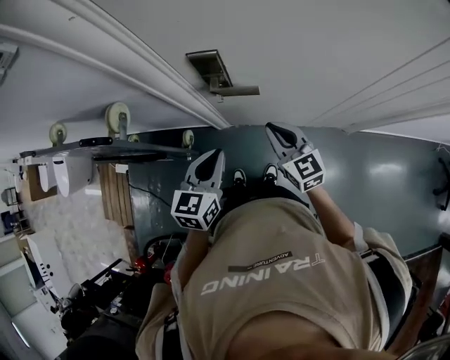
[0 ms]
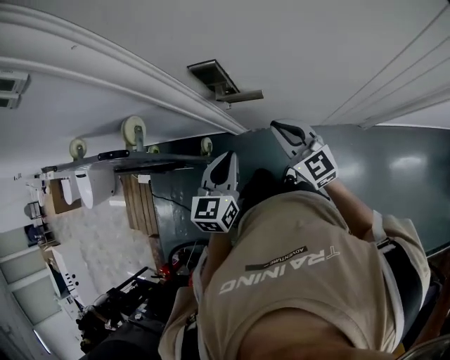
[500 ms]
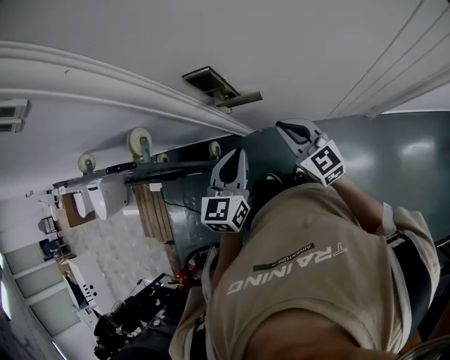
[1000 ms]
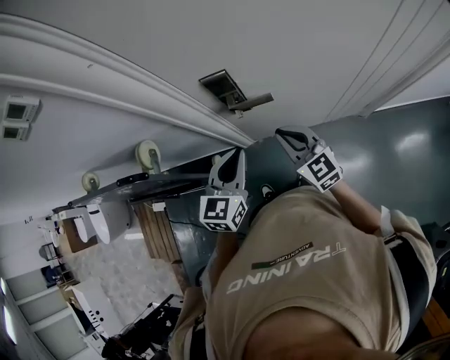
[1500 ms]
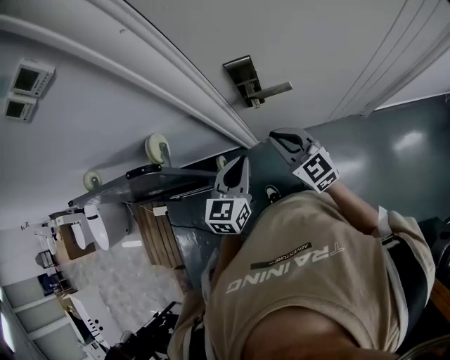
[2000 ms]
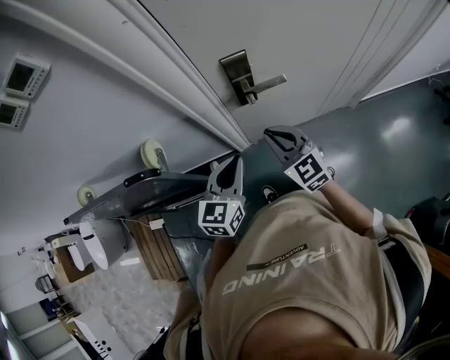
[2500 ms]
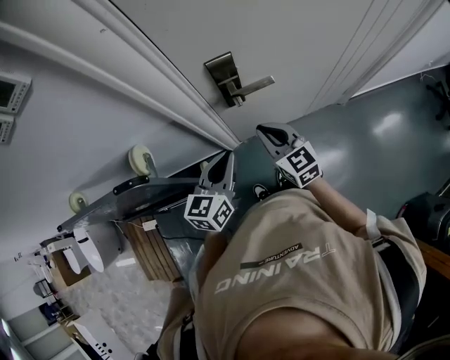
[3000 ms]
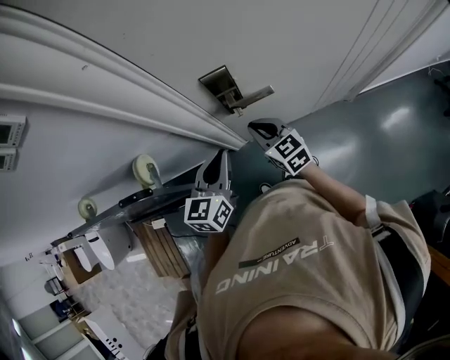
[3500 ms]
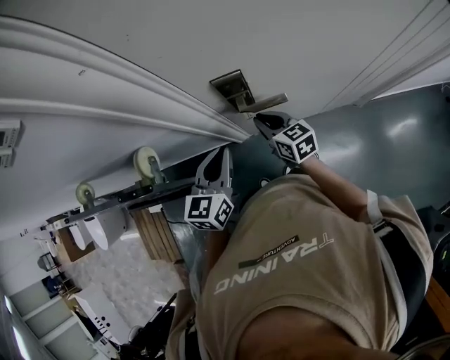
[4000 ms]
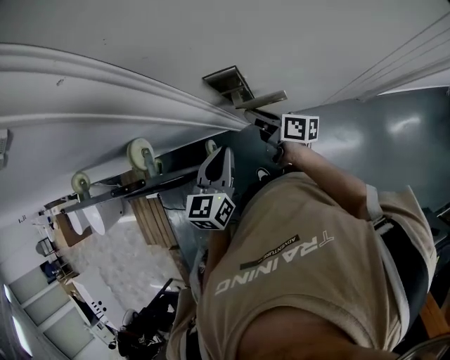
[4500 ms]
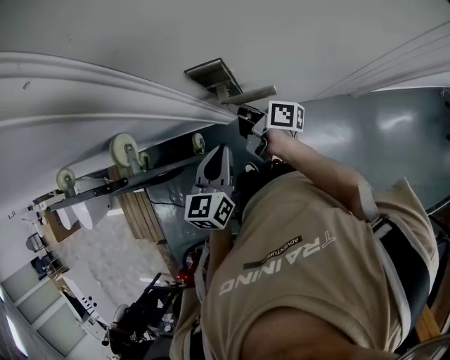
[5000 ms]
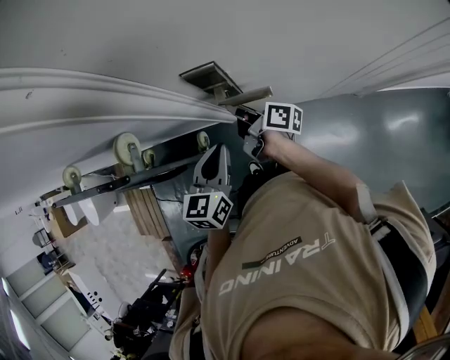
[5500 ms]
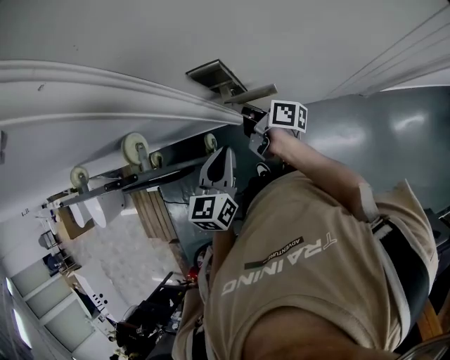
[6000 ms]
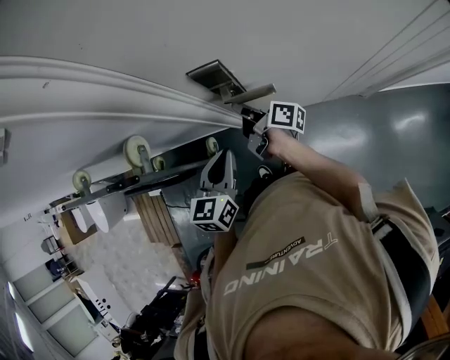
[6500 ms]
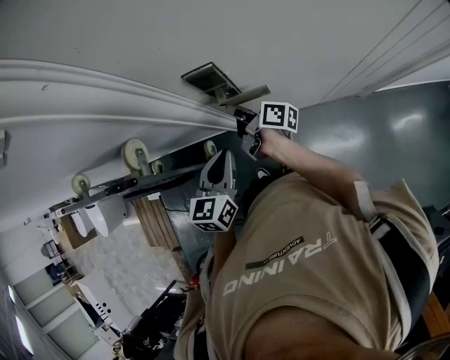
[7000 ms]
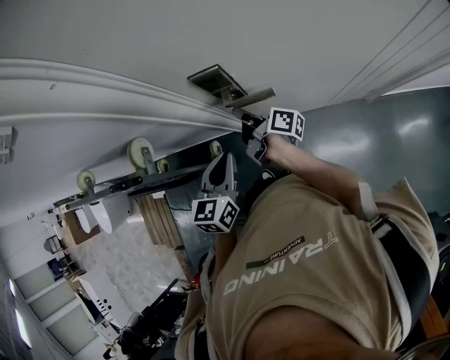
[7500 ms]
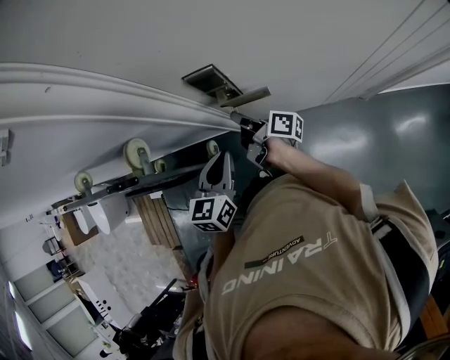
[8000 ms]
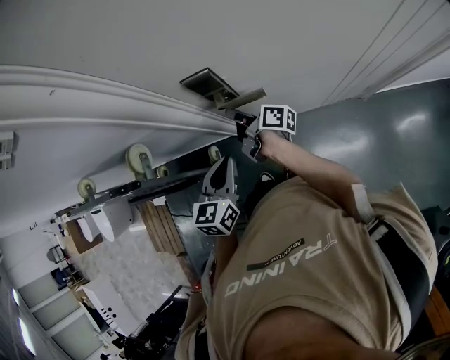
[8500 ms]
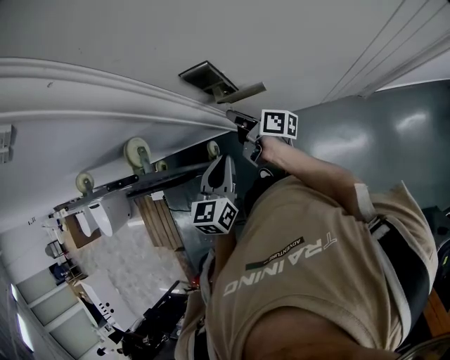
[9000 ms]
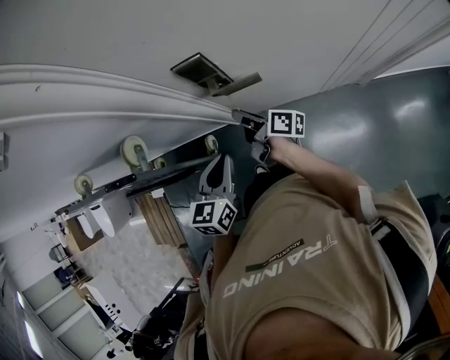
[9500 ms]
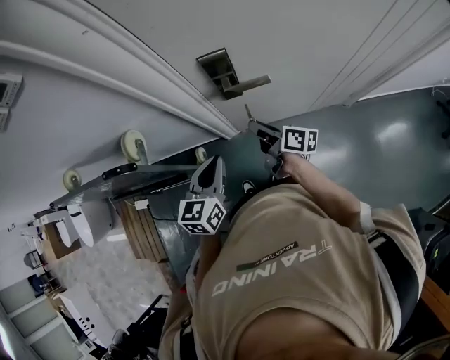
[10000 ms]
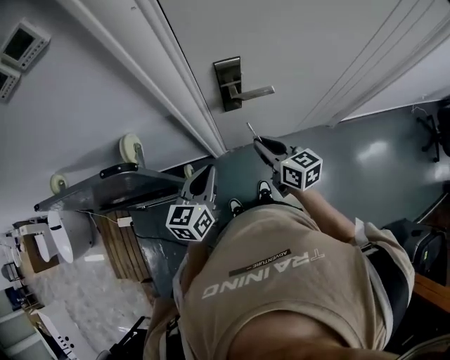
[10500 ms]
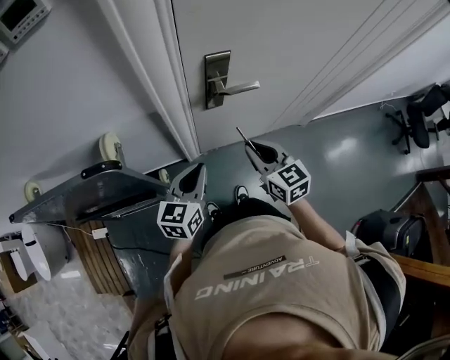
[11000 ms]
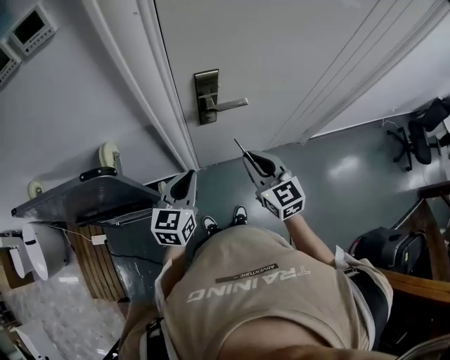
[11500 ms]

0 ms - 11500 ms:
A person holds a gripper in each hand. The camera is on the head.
0 ms - 2000 ms: Both grippers move to the left, approximately 10 cm.
2000 ms - 4000 ms: The left gripper is displaced forward by roughly 10 cm; the right gripper shifts about 15 cm forward and downward, and changes its angle by approximately 30 degrees.
4000 ms - 6000 ms: The left gripper moves about 5 cm, while the right gripper rotates around the line of its fingers by about 60 degrees, clockwise from behind.
6000 ms - 9500 ms: There are only small adjustments of the grippers.
9500 ms - 11500 ms: The right gripper travels backward and upward by about 20 cm, and rotates around the line of its fingers by approximately 80 degrees, counterclockwise from behind. Meanwhile the left gripper shifts some 10 cm to the left and upward.

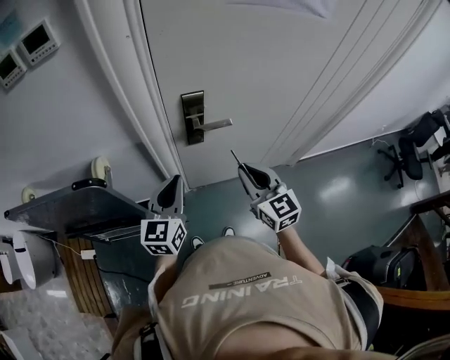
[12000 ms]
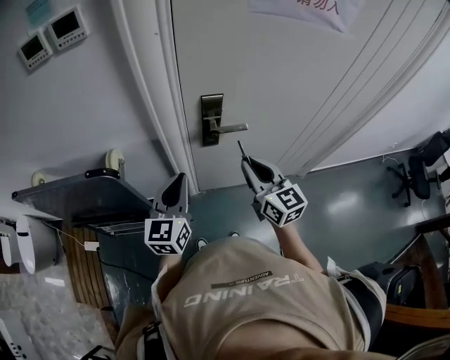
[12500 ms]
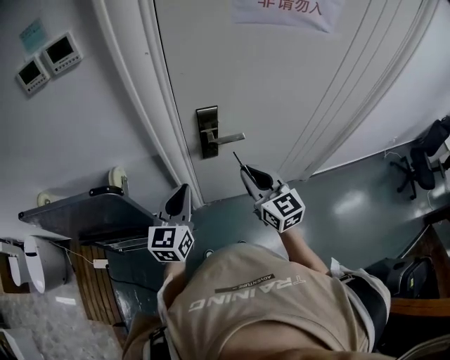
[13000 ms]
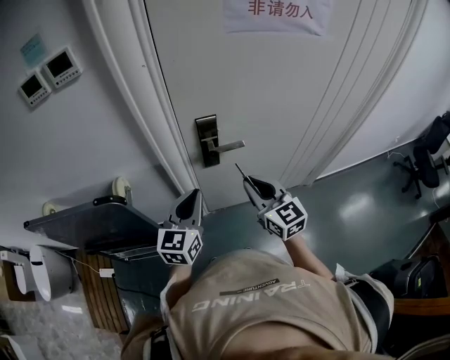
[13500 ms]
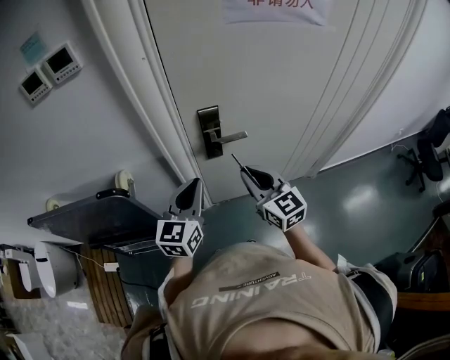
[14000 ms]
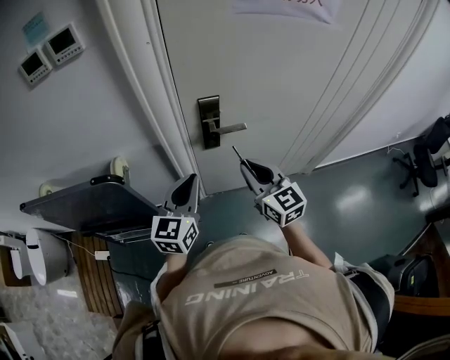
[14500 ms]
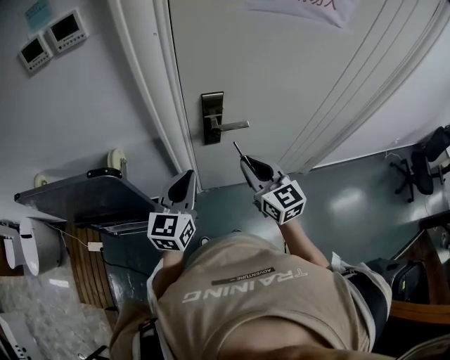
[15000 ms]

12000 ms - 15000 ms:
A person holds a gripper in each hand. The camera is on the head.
12000 ms - 15000 ms: The grippers move only a little.

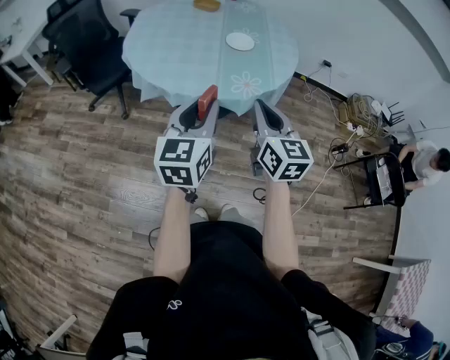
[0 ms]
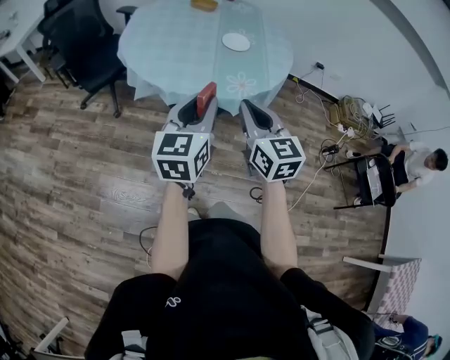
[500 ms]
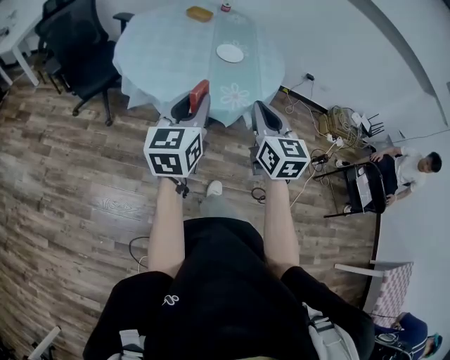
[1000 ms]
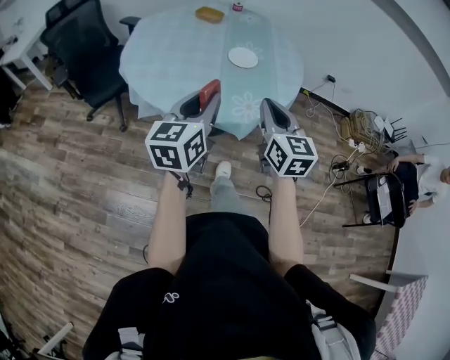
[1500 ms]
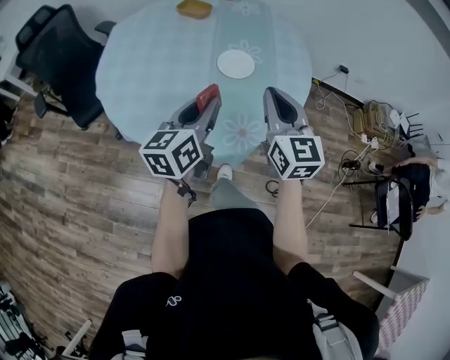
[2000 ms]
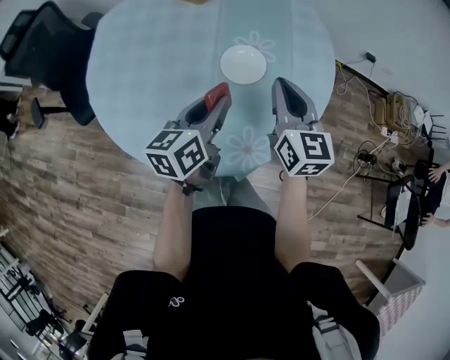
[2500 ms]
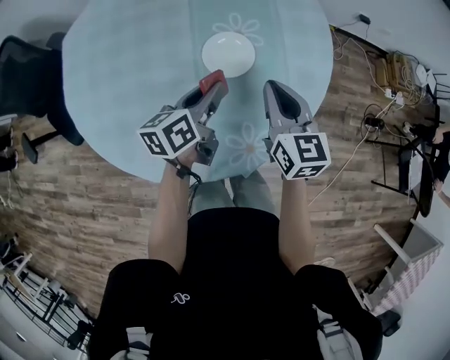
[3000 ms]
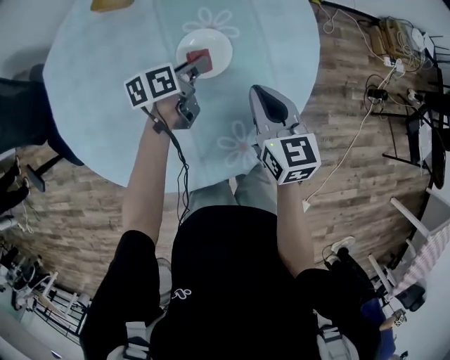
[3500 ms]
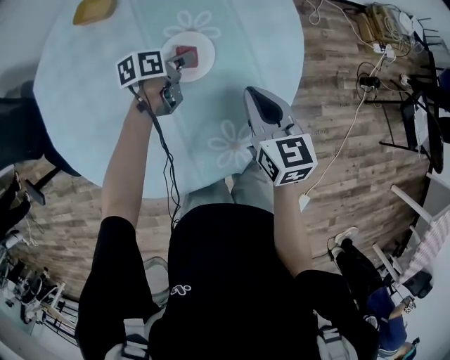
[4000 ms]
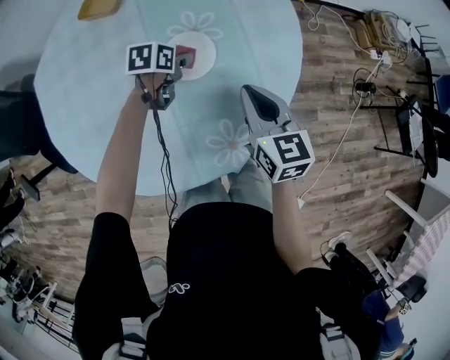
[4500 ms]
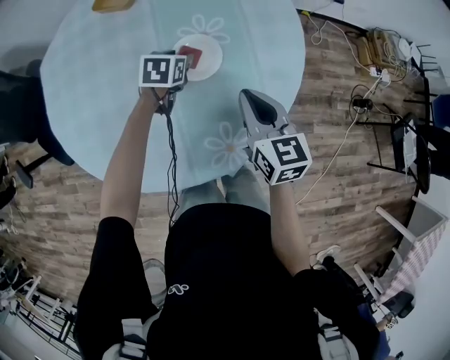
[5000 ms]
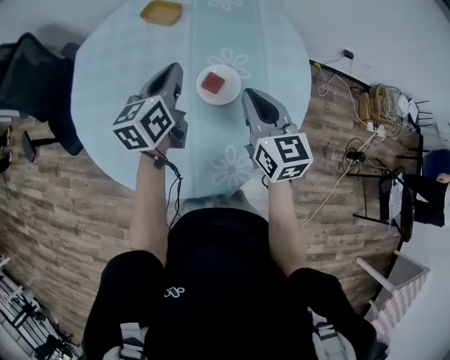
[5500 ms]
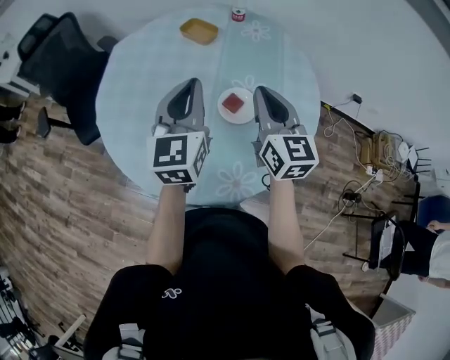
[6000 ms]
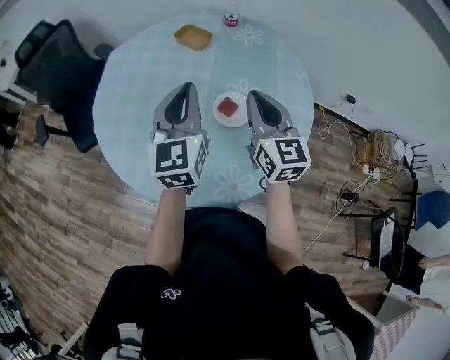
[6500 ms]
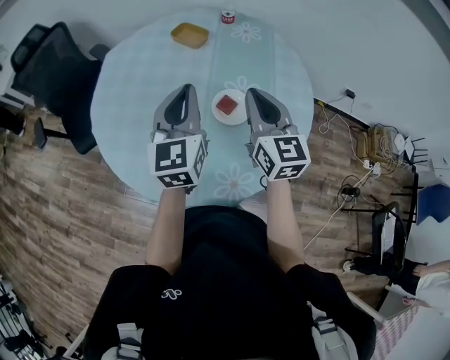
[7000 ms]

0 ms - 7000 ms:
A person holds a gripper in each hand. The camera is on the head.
0 ms - 2000 ms: The two grippers go some 35 cm forward. The left gripper swivels roughly 20 degrees.
2000 ms - 3500 ms: The right gripper shifts some 25 cm downward and forward, and rotates roughly 30 degrees, while the left gripper heads forward and downward, covering about 40 cm, and swivels roughly 40 degrees.
3500 ms - 5000 ms: The left gripper rotates some 40 degrees, and opens up.
5000 ms - 7000 ms: The right gripper goes approximately 20 cm upward and to the left, and rotates about 30 degrees. The left gripper heads upward, covering about 30 cm, tips its fingers upward by roughly 50 degrees, and closes its fingers.

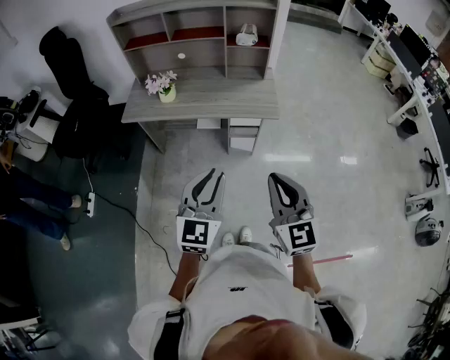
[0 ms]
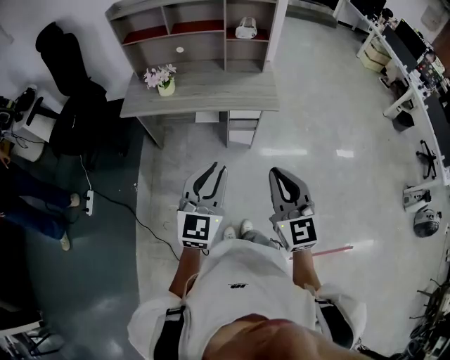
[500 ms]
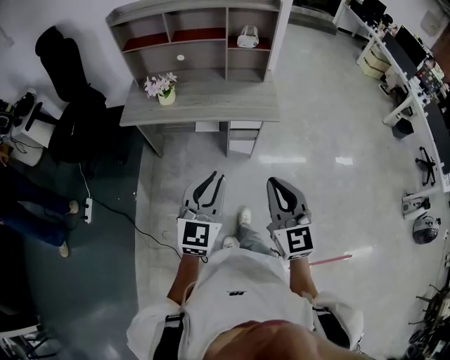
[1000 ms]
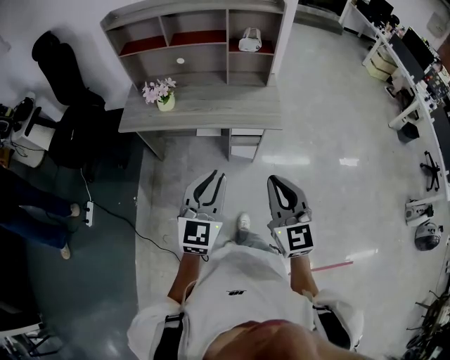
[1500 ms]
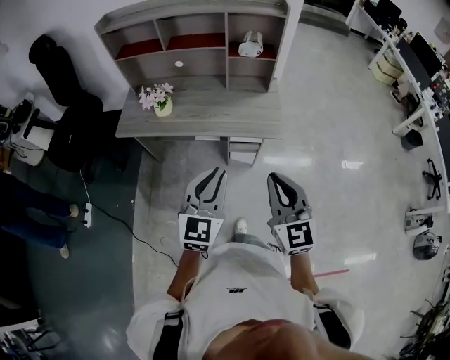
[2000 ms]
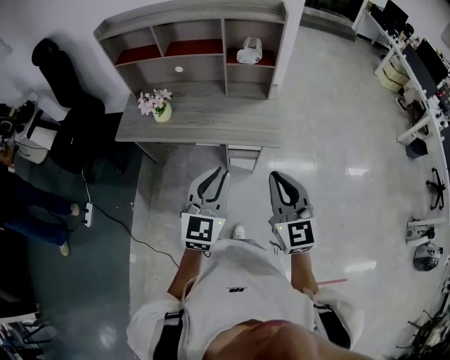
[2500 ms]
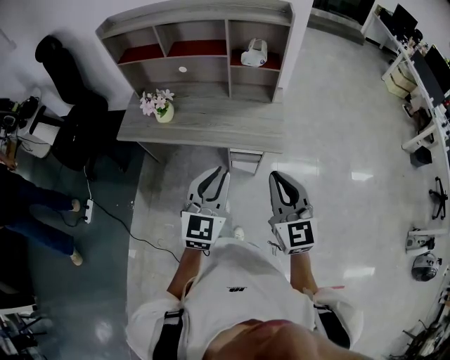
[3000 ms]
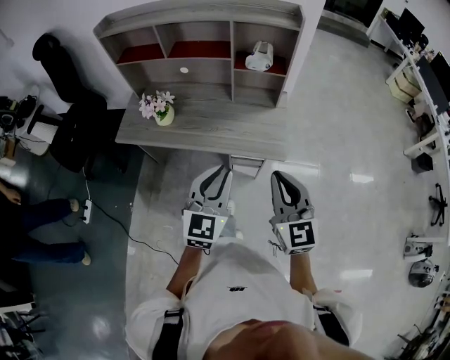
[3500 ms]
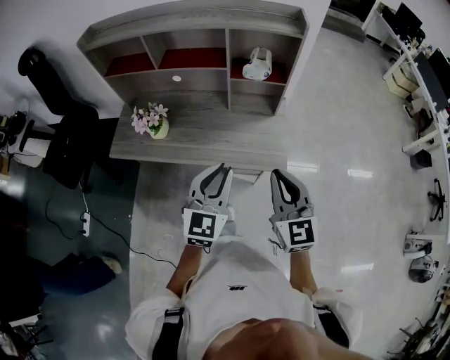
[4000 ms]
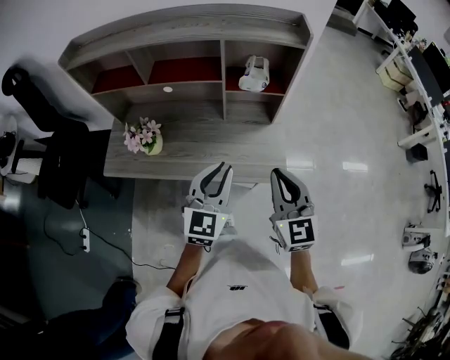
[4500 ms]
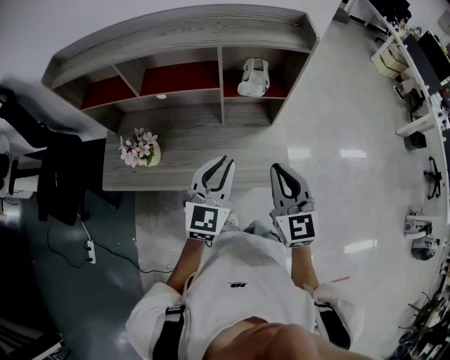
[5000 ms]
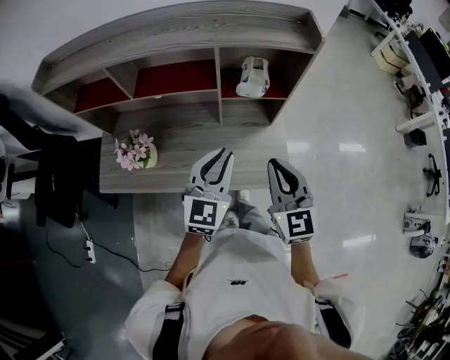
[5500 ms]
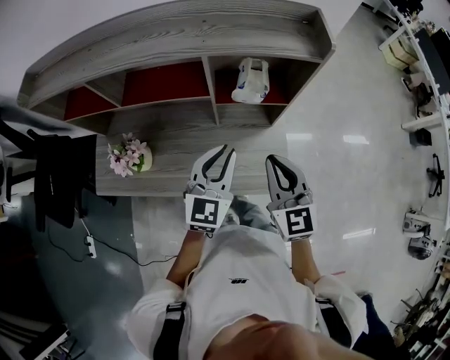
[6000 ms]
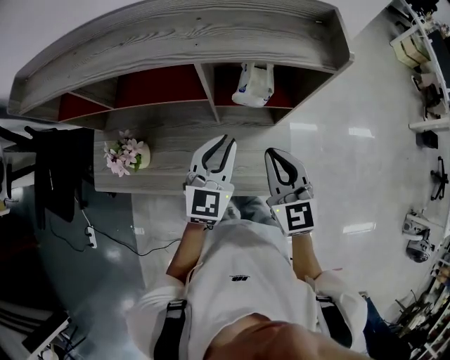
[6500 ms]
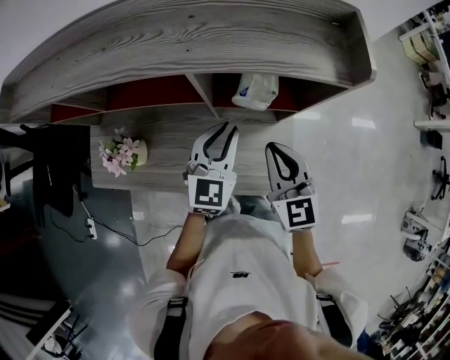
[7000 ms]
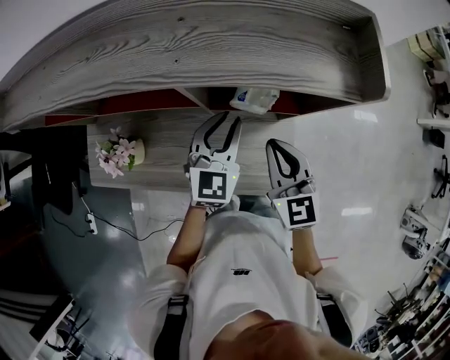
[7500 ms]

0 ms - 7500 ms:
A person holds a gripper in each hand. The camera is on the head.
0 ms - 2000 ms: Both grippers travel together forward, about 15 cm.
2000 ms - 4000 ms: Both grippers travel together forward, some 20 cm.
4000 ms - 5500 ms: Both grippers move forward, some 20 cm.
5500 ms - 7500 ms: The grippers both shift forward and downward by some 20 cm.
